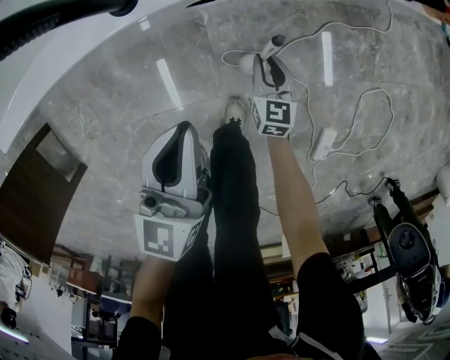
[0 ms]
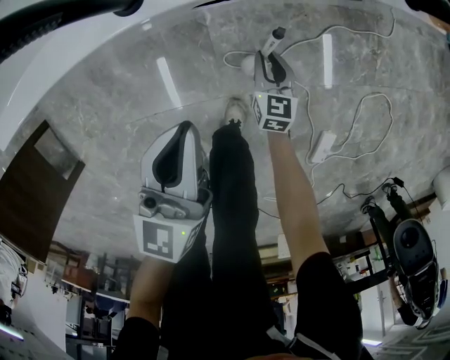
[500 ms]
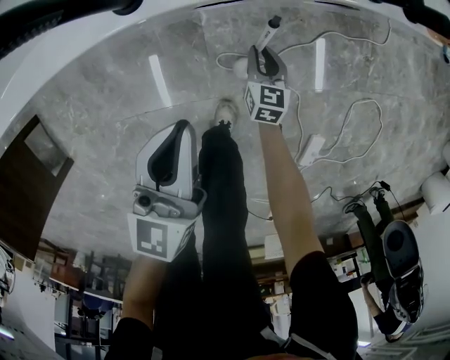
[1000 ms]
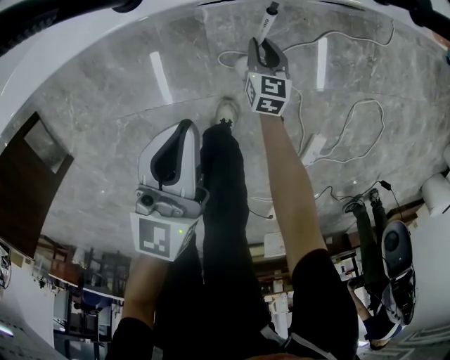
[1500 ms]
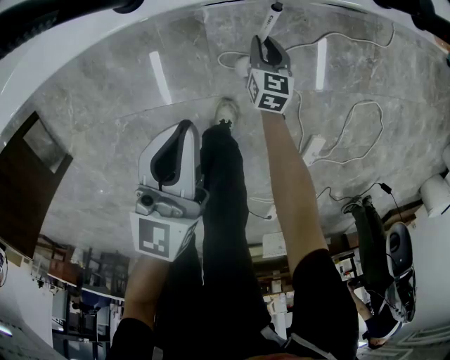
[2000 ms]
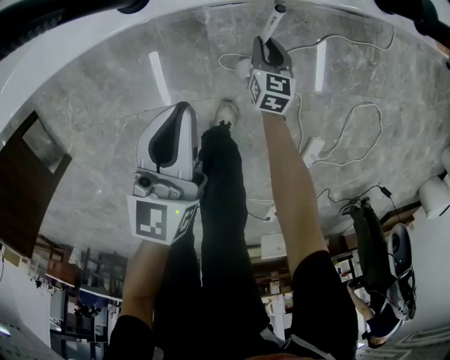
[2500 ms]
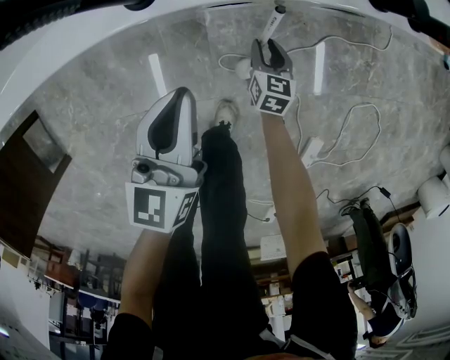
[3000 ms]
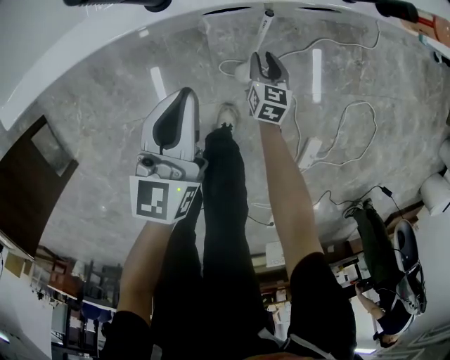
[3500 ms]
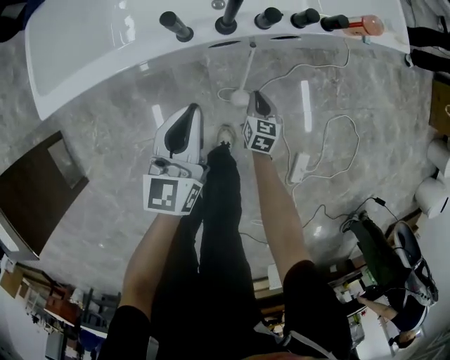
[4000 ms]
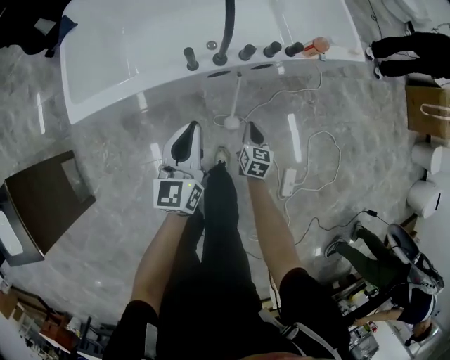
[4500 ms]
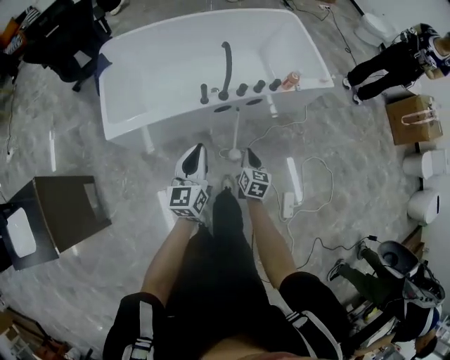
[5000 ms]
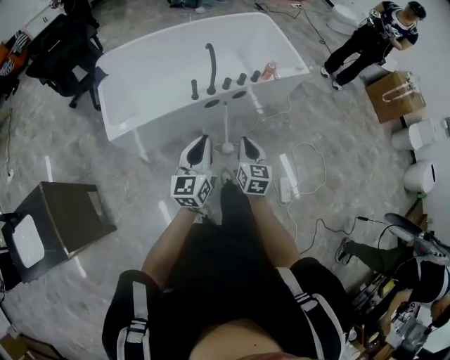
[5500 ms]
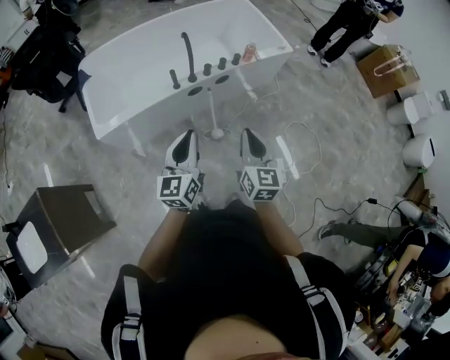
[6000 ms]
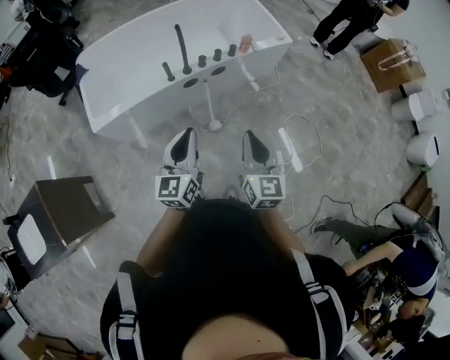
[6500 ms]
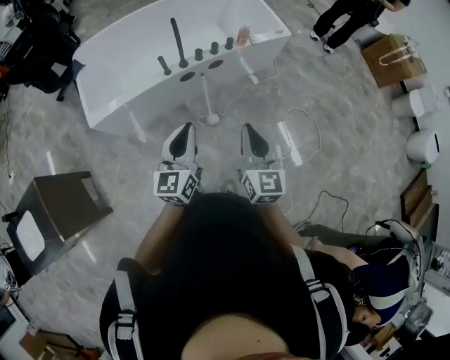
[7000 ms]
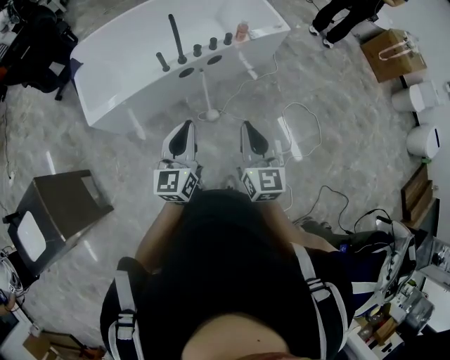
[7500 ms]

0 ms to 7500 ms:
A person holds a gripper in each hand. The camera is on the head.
0 ms to 2000 ms: The right gripper is displaced forward and downward by some 10 cm.
2000 ms to 4000 ms: The right gripper heads upward and backward, covering roughly 20 cm; the left gripper heads upward, covering some 15 cm.
4000 ms to 5500 ms: Both grippers move upward and backward, roughly 50 cm. The right gripper swivels about 20 degrees.
5500 ms to 7500 ms: The left gripper goes roughly 10 cm to the right, while the right gripper shifts about 20 cm to the right, upward and backward.

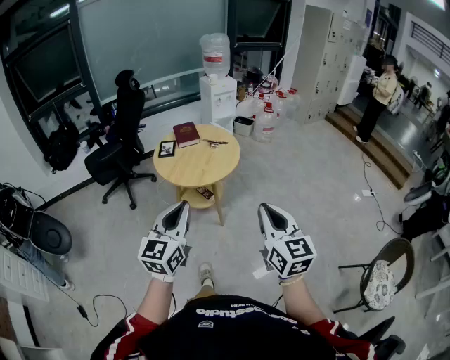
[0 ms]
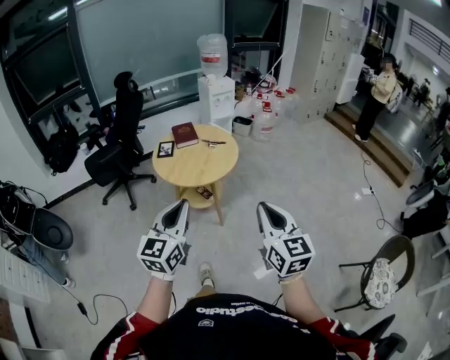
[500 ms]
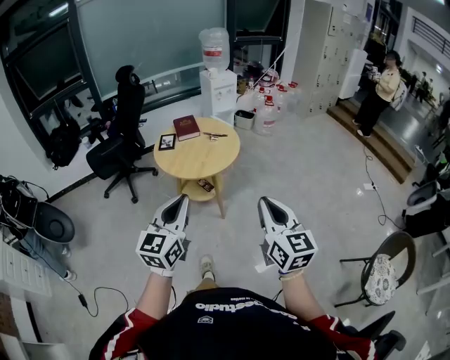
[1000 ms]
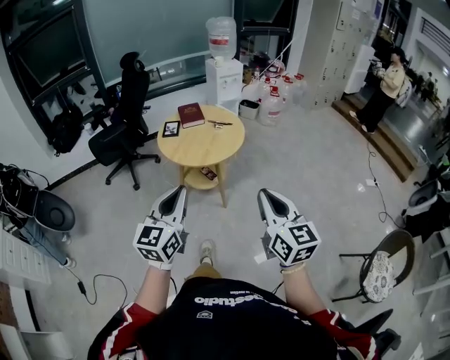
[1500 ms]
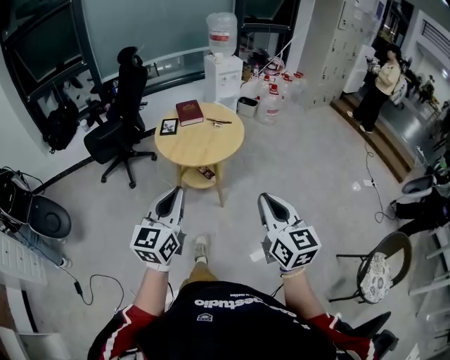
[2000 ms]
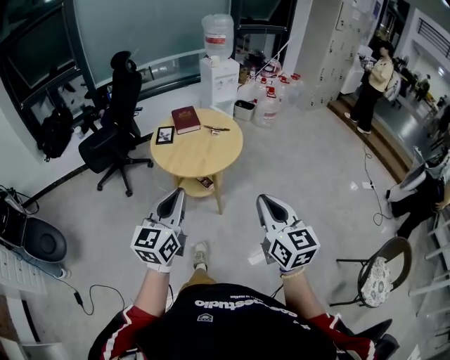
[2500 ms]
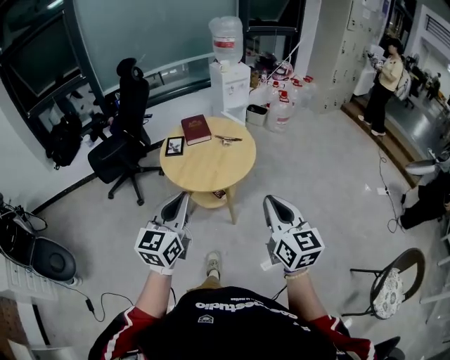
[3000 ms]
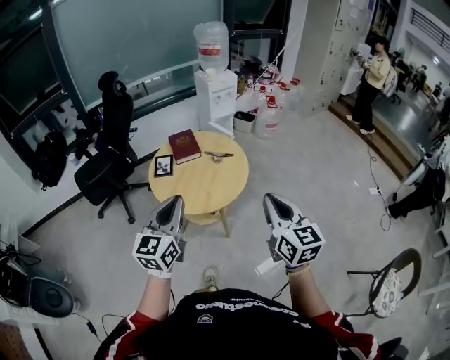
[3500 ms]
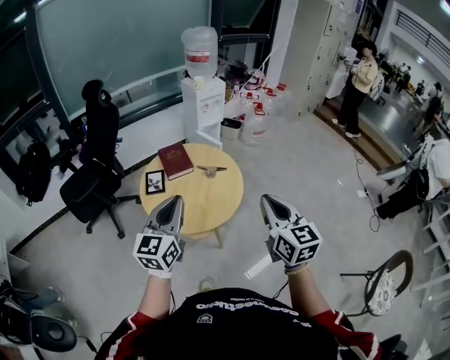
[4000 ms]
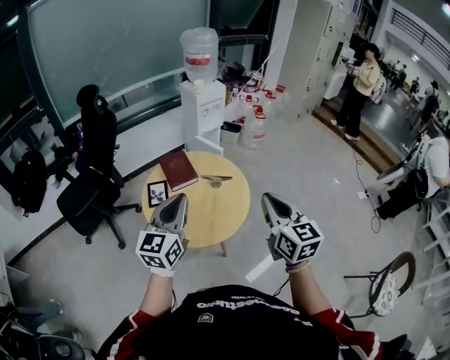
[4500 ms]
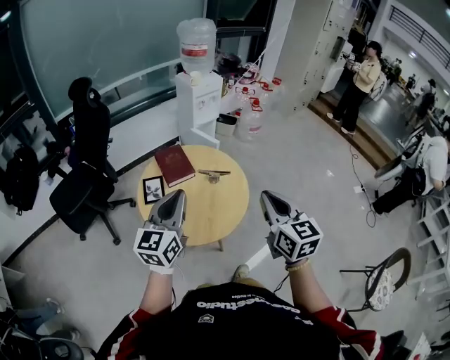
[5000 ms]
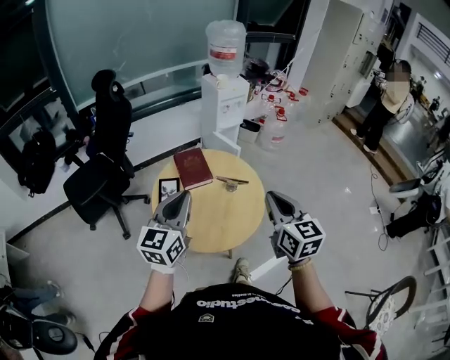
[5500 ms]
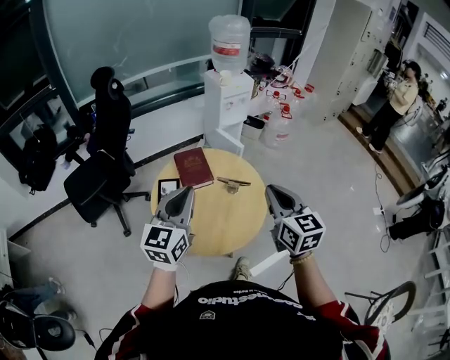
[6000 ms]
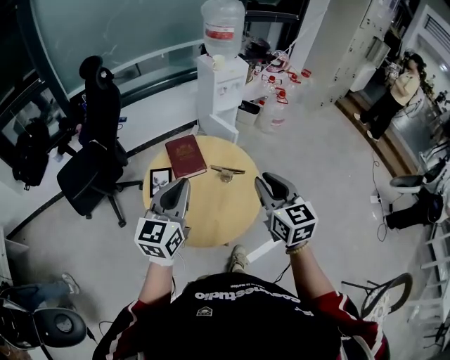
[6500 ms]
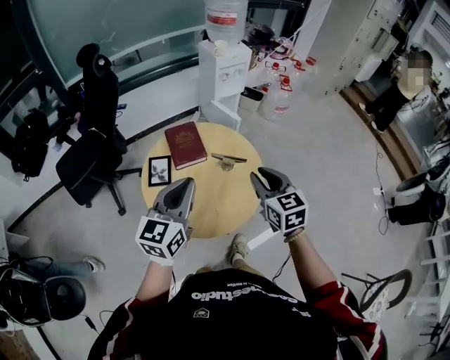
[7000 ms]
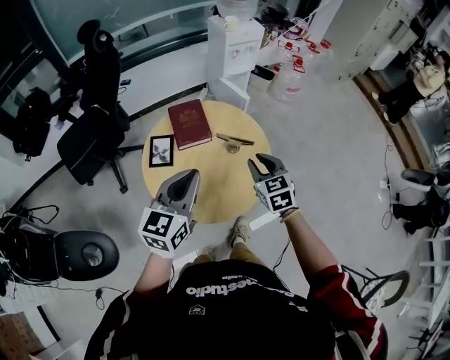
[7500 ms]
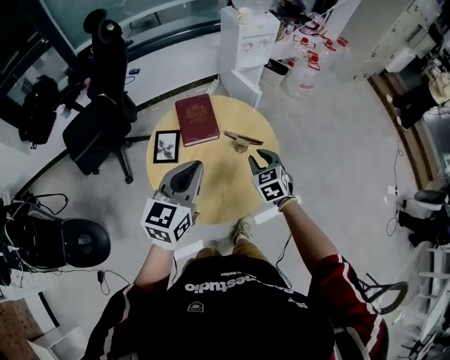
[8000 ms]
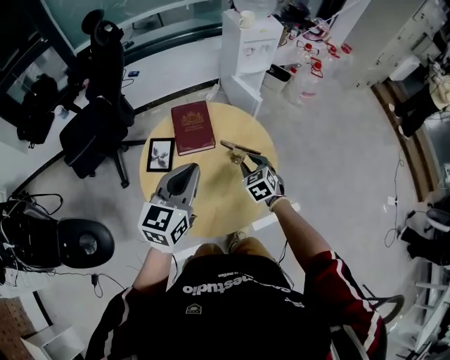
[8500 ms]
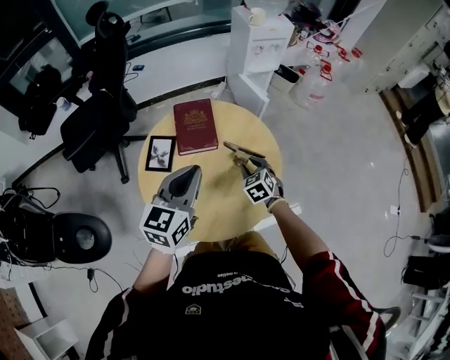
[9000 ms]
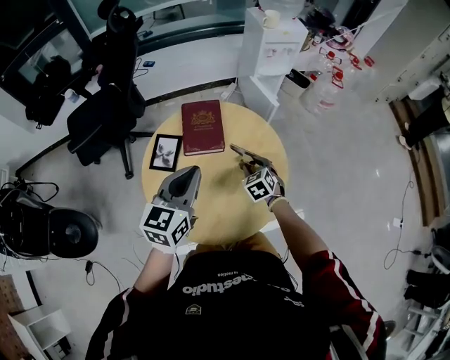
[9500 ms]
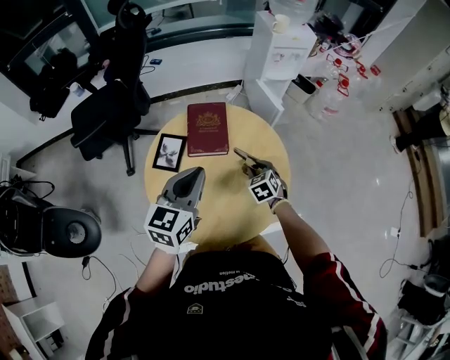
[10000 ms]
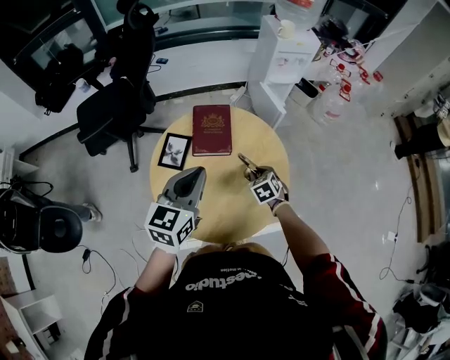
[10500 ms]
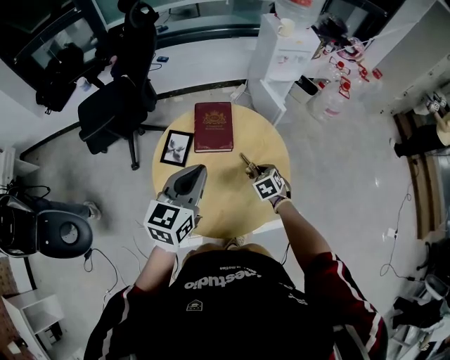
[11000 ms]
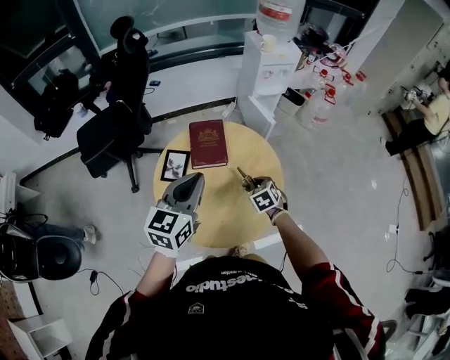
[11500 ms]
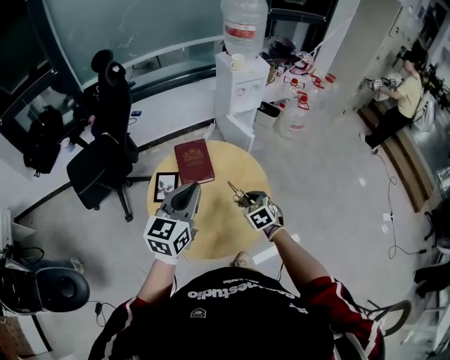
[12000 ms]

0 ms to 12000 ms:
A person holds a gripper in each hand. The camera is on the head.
0 ms to 2000 ms: The grippers stay close to where they were, moving slightly.
2000 ms to 4000 ms: Both grippers move forward, roughly 35 cm.
4000 ms to 6000 ms: The two grippers go some 20 cm forward.
6000 ms to 8000 ms: The left gripper moves downward, roughly 10 cm, while the right gripper shifts roughly 30 cm downward and forward, and rotates approximately 40 degrees.
8000 ms to 10000 ms: The right gripper shifts some 20 cm downward and forward, while the left gripper heads downward and forward, covering roughly 10 cm.
10000 ms to 12000 ms: The right gripper shifts roughly 15 cm upward and backward, and closes its fingers, while the left gripper is displaced upward by some 10 cm.

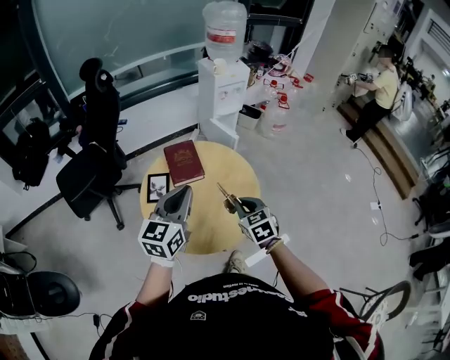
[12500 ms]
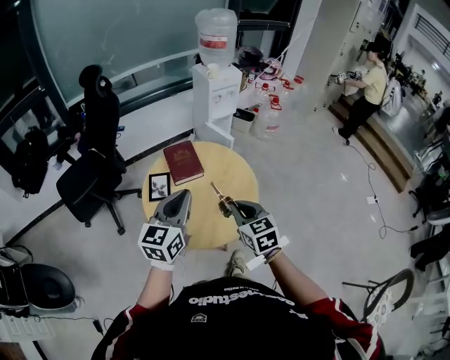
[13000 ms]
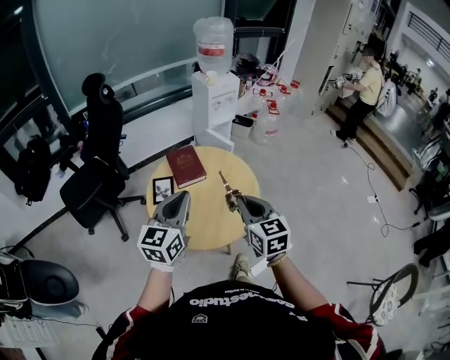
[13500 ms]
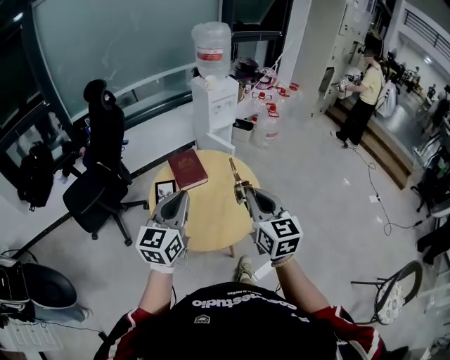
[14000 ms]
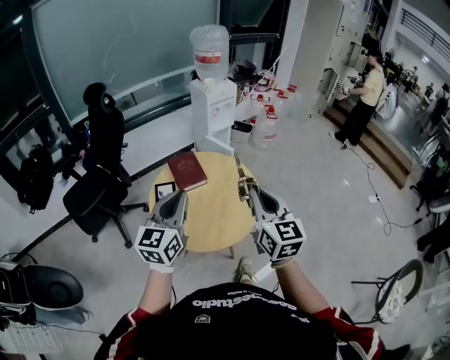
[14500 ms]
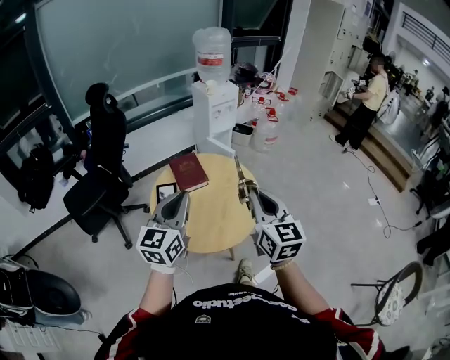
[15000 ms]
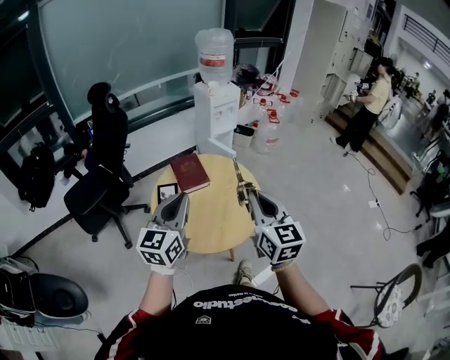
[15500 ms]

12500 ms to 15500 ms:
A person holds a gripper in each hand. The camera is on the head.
12500 ms to 14000 ms: The right gripper goes about 20 cm upward and backward, and rotates approximately 30 degrees; the left gripper travels backward by about 10 cm.
14000 ms to 15500 ms: The grippers stay close to where they were, moving slightly.

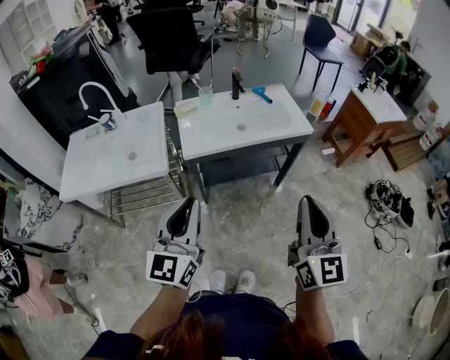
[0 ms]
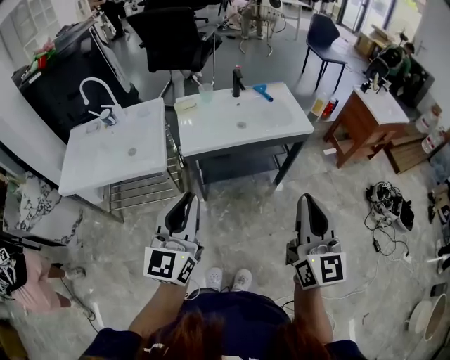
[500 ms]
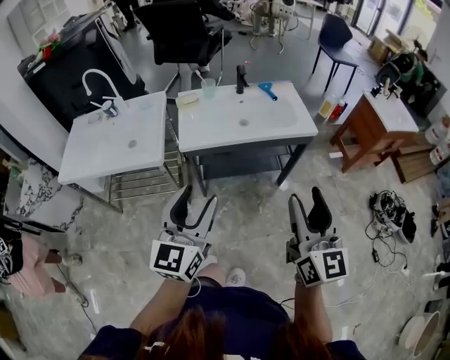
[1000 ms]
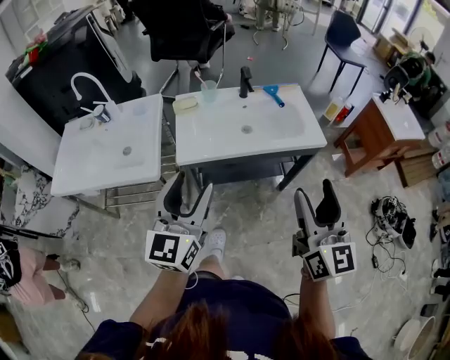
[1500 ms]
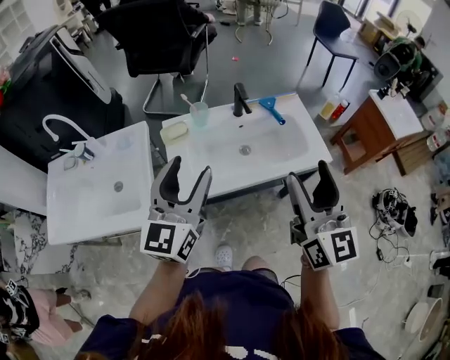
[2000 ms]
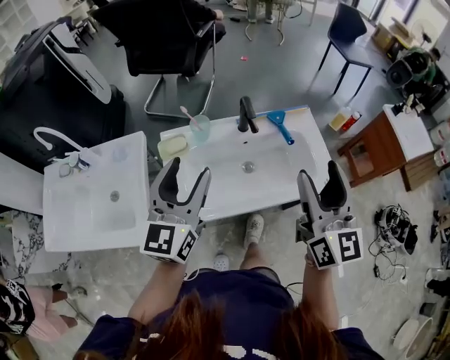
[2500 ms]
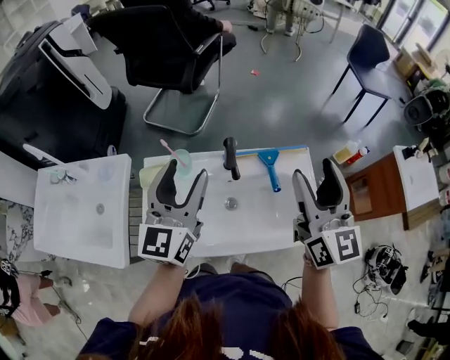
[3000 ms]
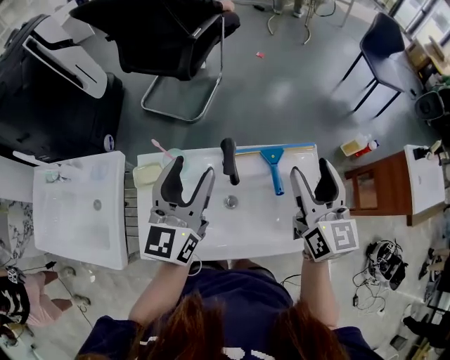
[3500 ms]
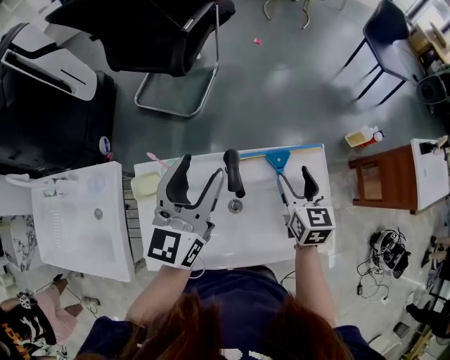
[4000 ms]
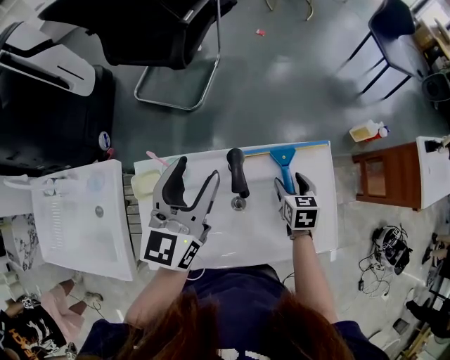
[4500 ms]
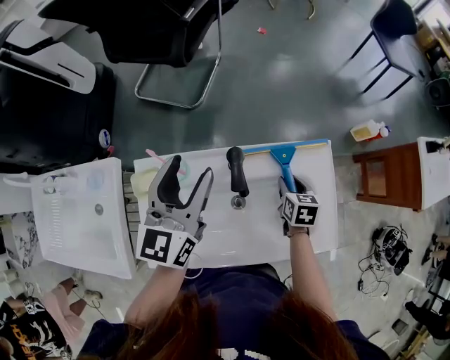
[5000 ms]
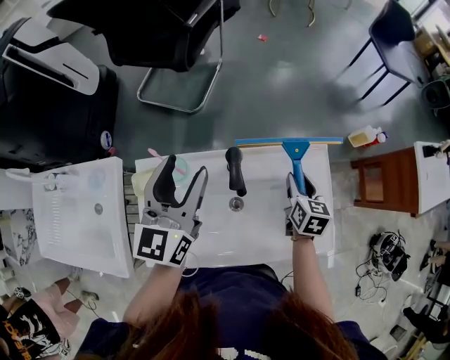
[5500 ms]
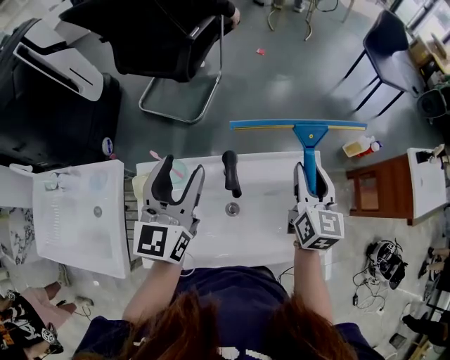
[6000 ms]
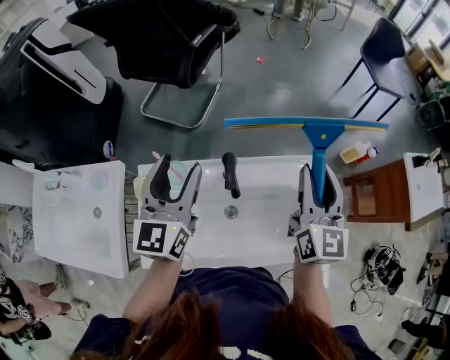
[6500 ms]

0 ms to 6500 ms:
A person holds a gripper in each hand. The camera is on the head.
0 ms to 2000 ms: Both grippers move forward, roughly 40 cm. The right gripper opens up; the left gripper opens its fingers.
2000 ms to 4500 ms: The pair of grippers is taken forward, about 50 cm. The right gripper moves downward, about 40 cm, and angles its fingers downward, by roughly 60 degrees.
4500 ms to 6500 ms: The right gripper is displaced upward by approximately 30 cm, tilts its fingers some 50 degrees upward, and closes. Meanwhile the left gripper shifts approximately 5 cm upward.
